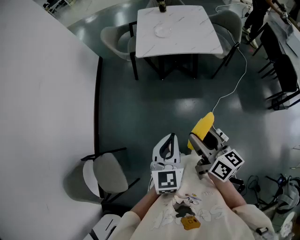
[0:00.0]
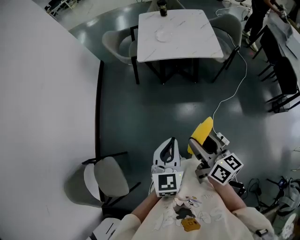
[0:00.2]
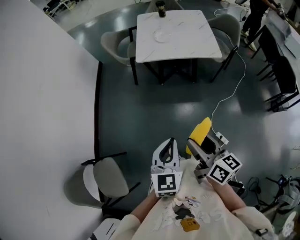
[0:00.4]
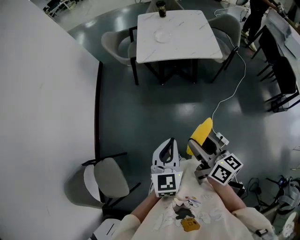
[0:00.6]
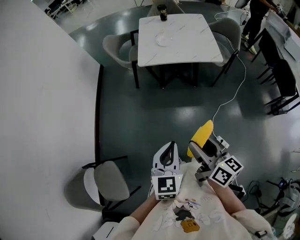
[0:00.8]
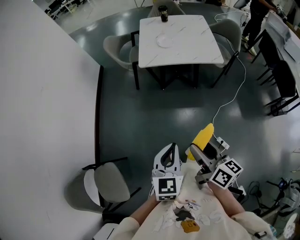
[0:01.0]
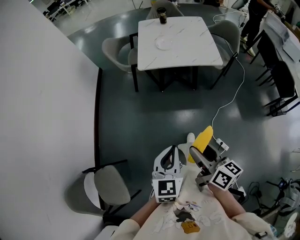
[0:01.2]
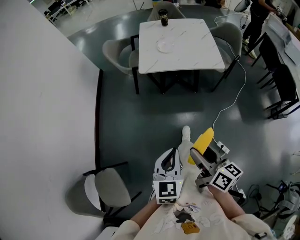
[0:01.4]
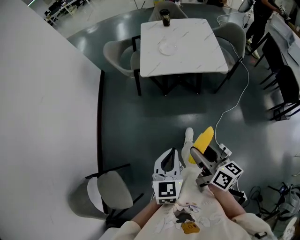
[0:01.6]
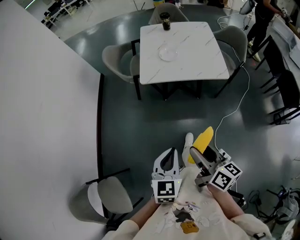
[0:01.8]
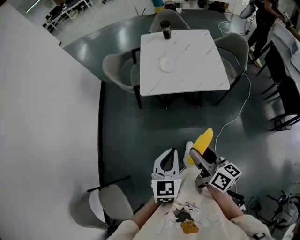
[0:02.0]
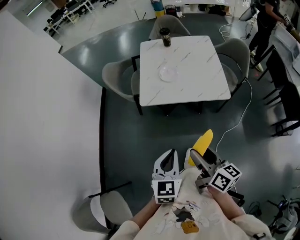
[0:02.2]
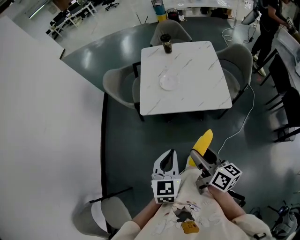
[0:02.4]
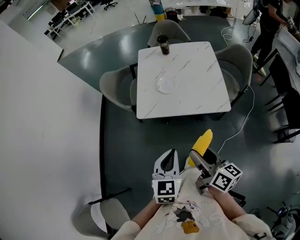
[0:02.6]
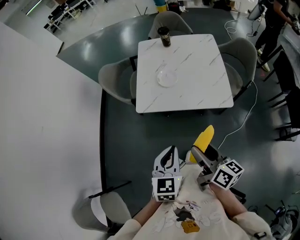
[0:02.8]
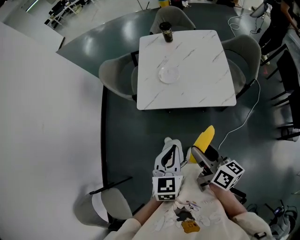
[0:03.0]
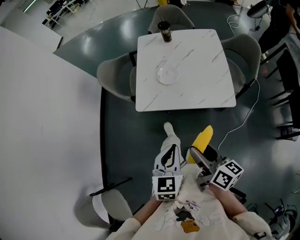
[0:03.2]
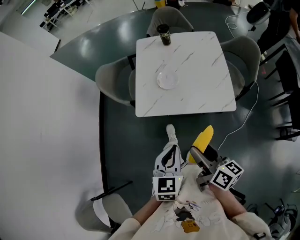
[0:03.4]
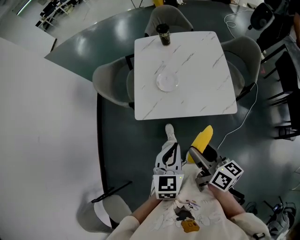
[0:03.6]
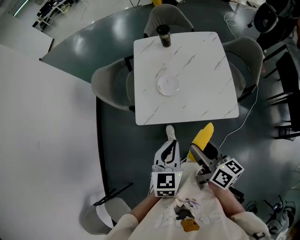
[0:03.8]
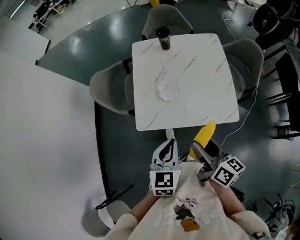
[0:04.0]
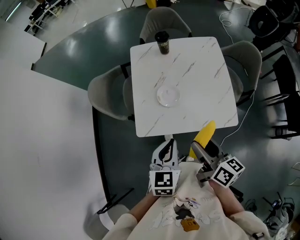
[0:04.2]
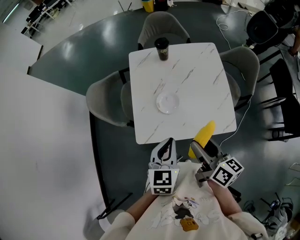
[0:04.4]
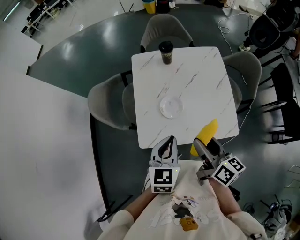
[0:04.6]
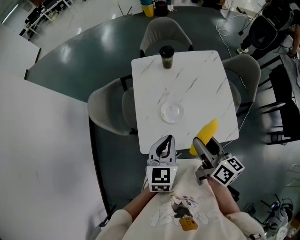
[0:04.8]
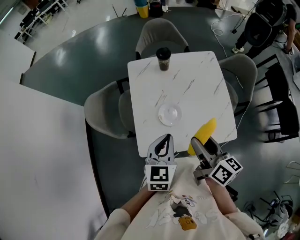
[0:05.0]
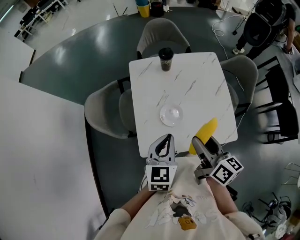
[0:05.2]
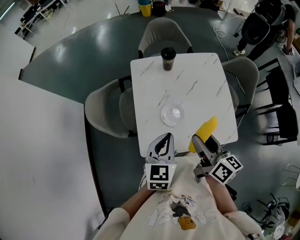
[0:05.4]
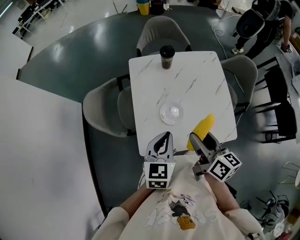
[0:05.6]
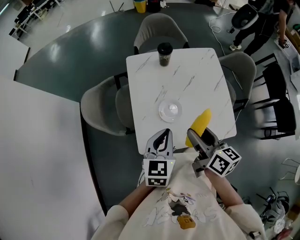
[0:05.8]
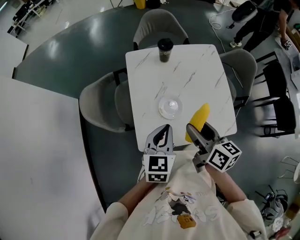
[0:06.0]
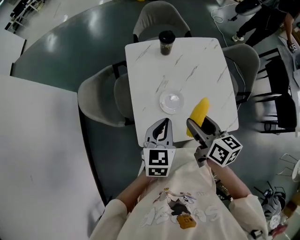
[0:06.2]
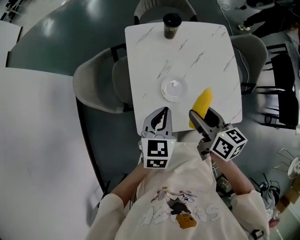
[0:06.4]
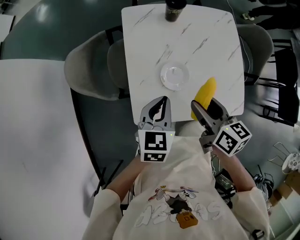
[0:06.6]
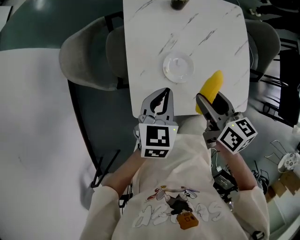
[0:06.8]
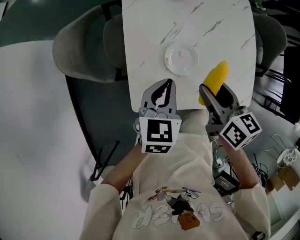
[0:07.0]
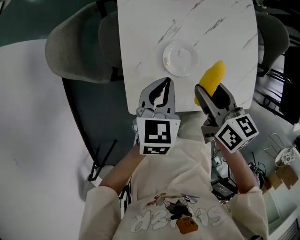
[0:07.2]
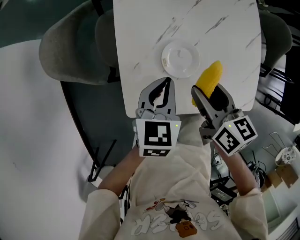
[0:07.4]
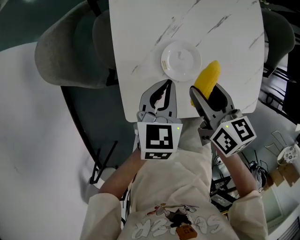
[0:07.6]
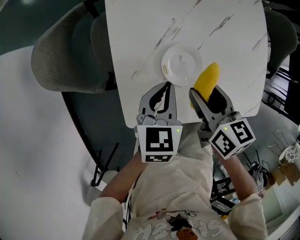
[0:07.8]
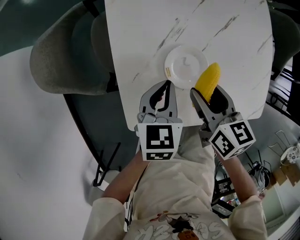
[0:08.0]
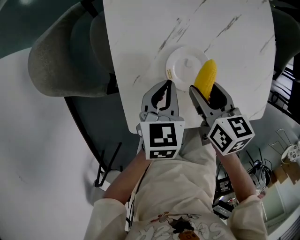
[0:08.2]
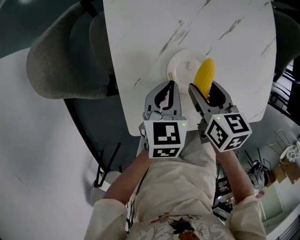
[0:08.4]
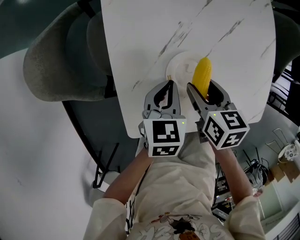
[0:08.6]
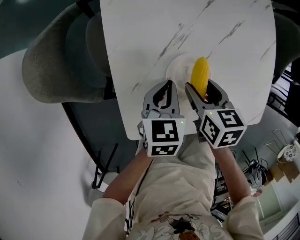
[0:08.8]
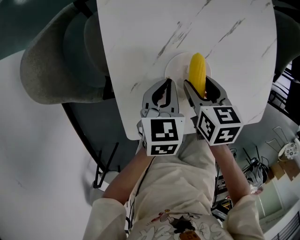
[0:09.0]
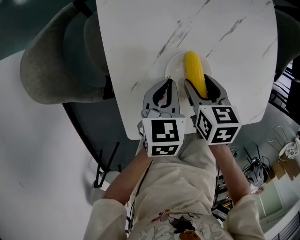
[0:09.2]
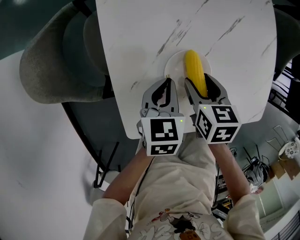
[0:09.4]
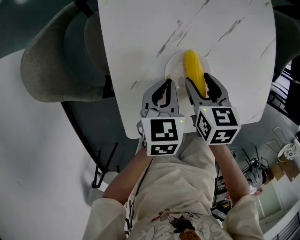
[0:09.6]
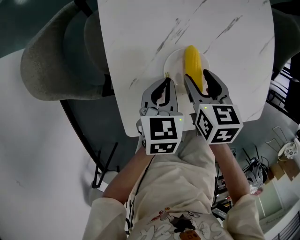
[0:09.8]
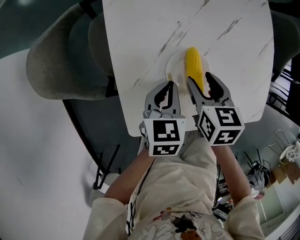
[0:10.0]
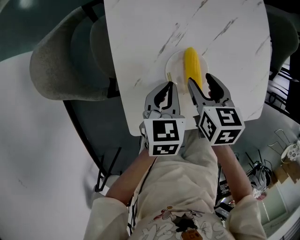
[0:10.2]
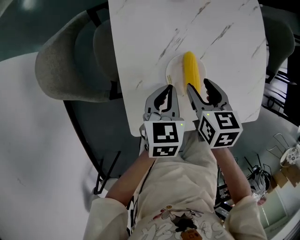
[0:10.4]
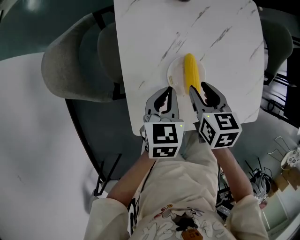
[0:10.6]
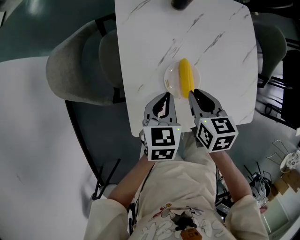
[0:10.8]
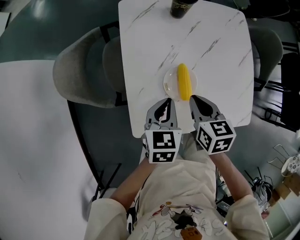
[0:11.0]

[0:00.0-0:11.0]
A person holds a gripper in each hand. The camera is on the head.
0:00.0 to 0:01.6: The grippers both shift forward by approximately 5 cm.
0:01.6 to 0:03.2: The grippers both shift forward and to the right by roughly 30 cm.
0:03.2 to 0:04.8: Both grippers travel together forward, roughly 30 cm.
0:04.8 to 0:06.2: Both grippers move forward, approximately 5 cm.
0:06.2 to 0:07.8: The two grippers go about 20 cm downward.
0:07.8 to 0:09.4: The grippers both shift downward by roughly 10 cm. The right gripper turns by some 20 degrees.
0:09.4 to 0:11.0: The grippers both shift upward by about 10 cm. The right gripper closes.

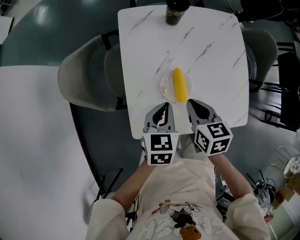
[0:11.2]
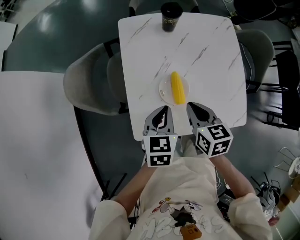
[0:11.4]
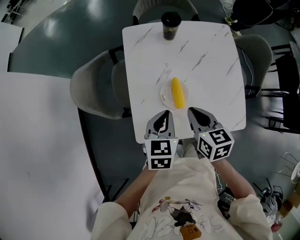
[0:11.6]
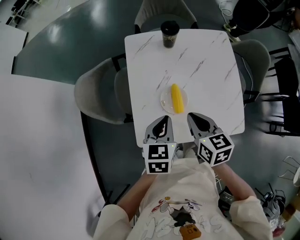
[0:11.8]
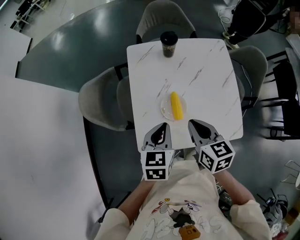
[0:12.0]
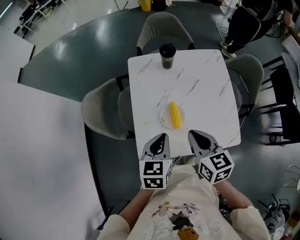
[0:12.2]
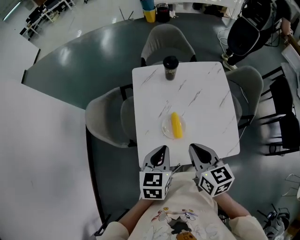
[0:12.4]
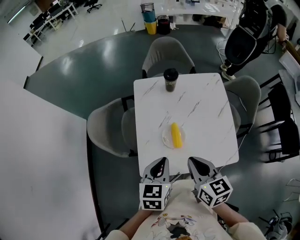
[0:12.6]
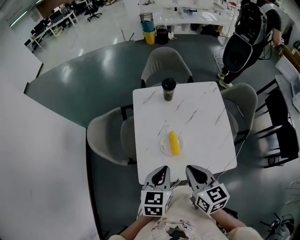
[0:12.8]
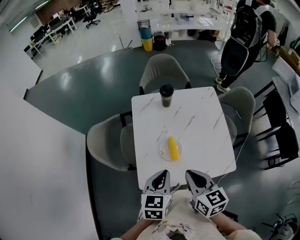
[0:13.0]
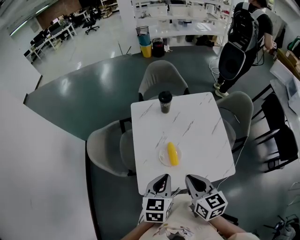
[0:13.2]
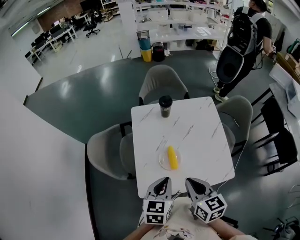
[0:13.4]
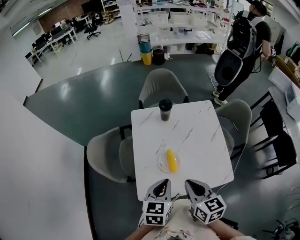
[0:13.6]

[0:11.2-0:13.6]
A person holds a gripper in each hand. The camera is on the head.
0:11.2 to 0:12.4: Both grippers move upward, about 15 cm.
0:12.4 to 0:13.6: The grippers make only small movements.

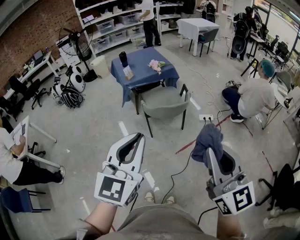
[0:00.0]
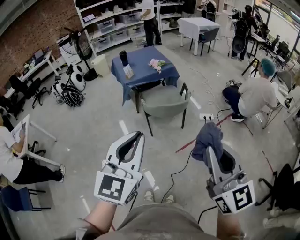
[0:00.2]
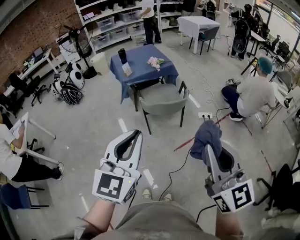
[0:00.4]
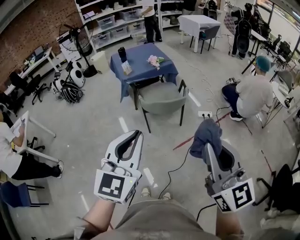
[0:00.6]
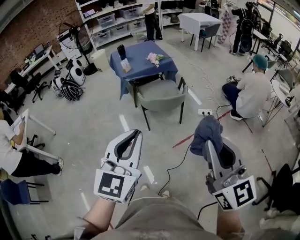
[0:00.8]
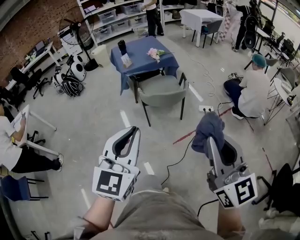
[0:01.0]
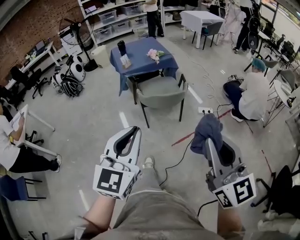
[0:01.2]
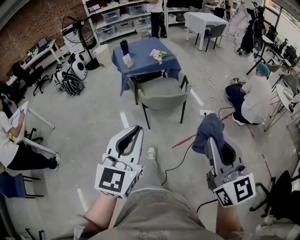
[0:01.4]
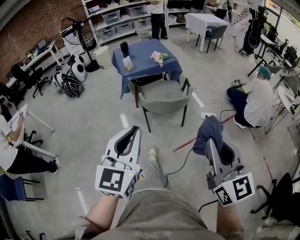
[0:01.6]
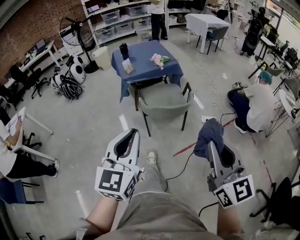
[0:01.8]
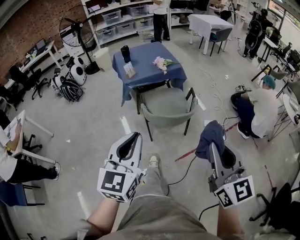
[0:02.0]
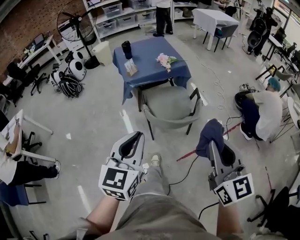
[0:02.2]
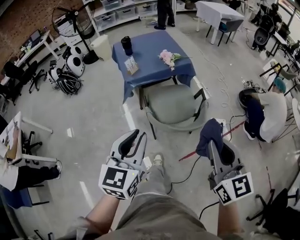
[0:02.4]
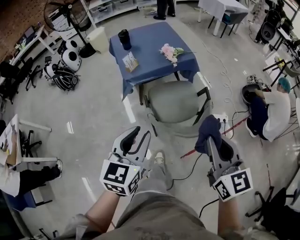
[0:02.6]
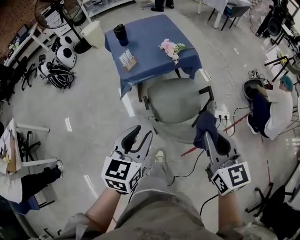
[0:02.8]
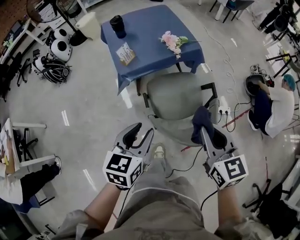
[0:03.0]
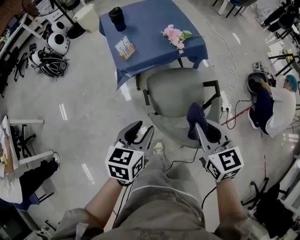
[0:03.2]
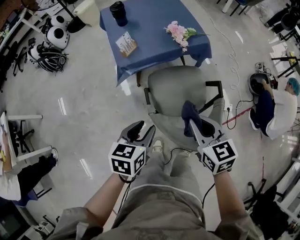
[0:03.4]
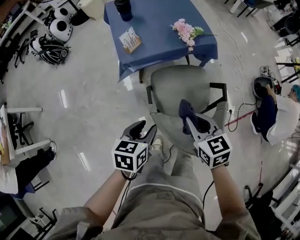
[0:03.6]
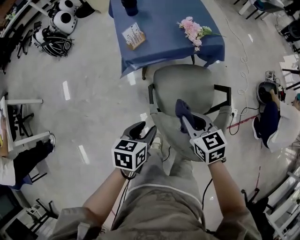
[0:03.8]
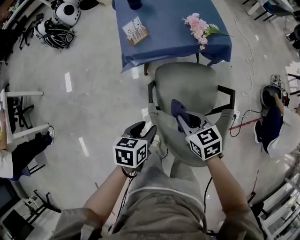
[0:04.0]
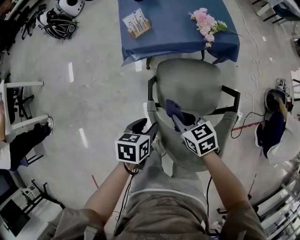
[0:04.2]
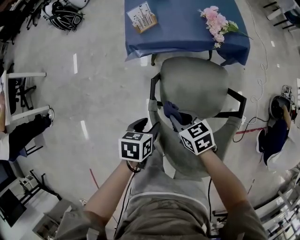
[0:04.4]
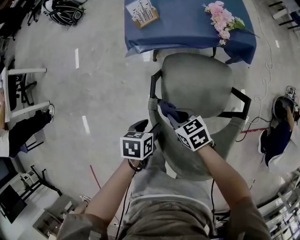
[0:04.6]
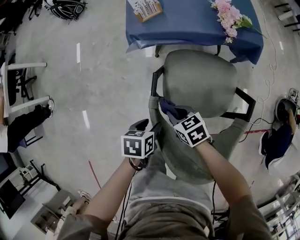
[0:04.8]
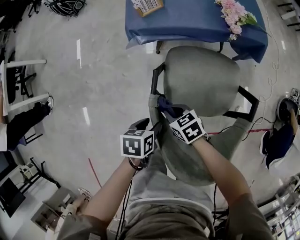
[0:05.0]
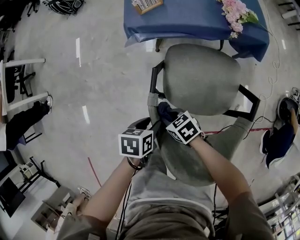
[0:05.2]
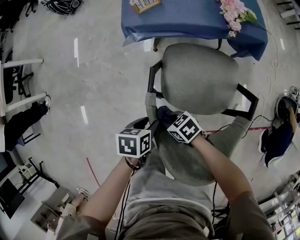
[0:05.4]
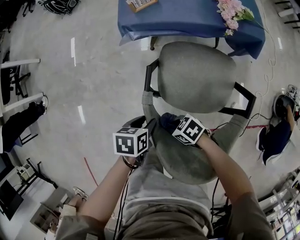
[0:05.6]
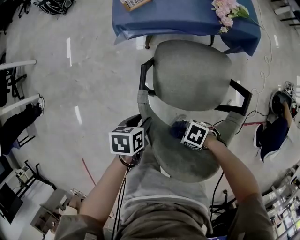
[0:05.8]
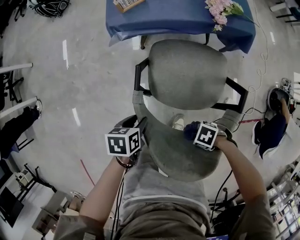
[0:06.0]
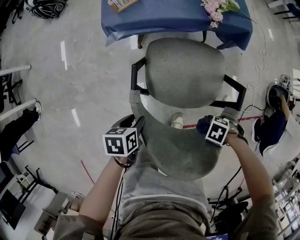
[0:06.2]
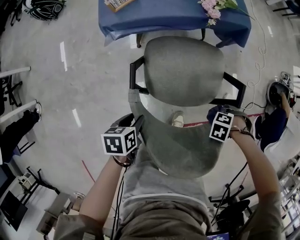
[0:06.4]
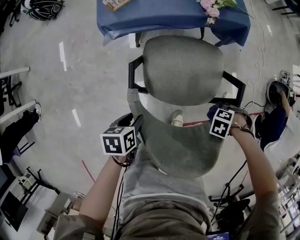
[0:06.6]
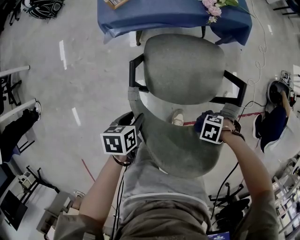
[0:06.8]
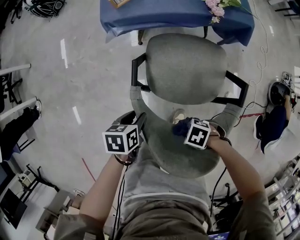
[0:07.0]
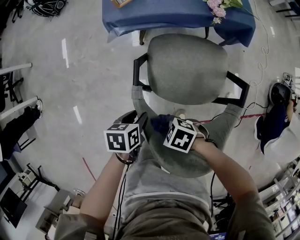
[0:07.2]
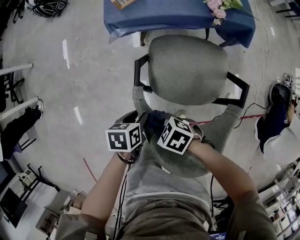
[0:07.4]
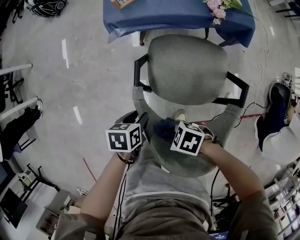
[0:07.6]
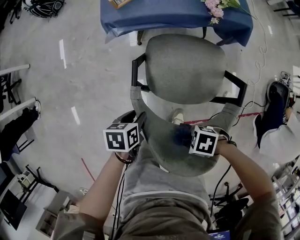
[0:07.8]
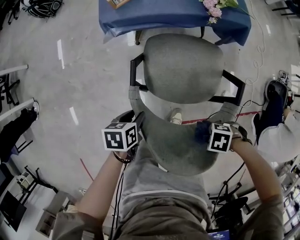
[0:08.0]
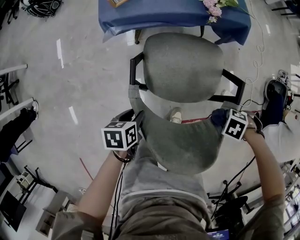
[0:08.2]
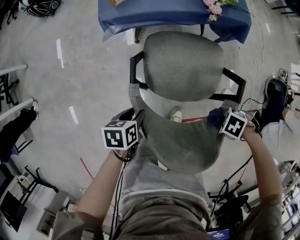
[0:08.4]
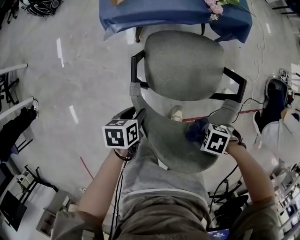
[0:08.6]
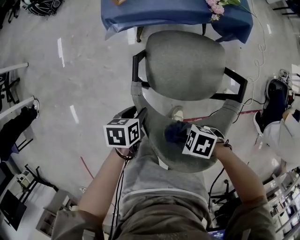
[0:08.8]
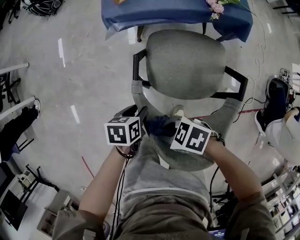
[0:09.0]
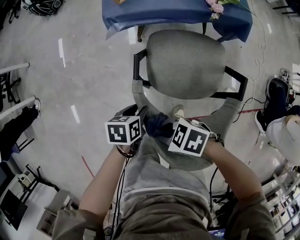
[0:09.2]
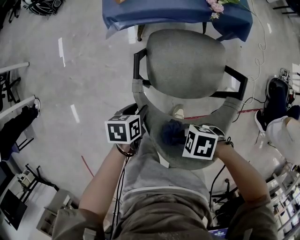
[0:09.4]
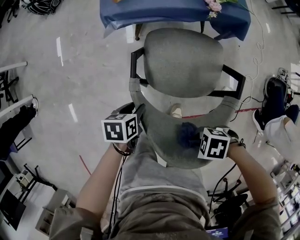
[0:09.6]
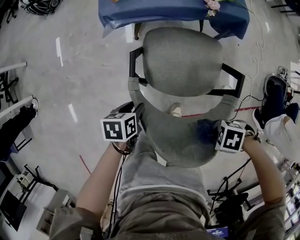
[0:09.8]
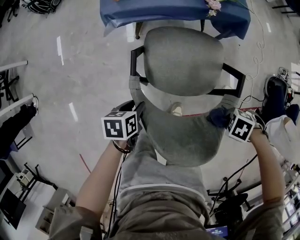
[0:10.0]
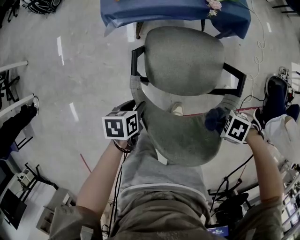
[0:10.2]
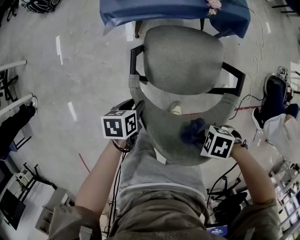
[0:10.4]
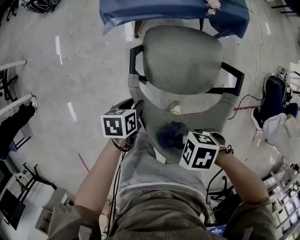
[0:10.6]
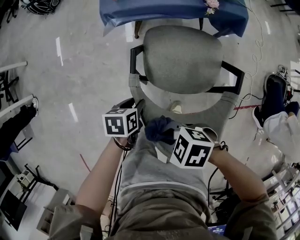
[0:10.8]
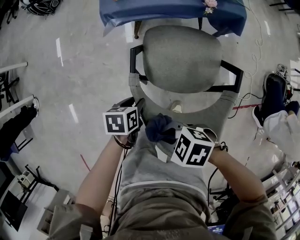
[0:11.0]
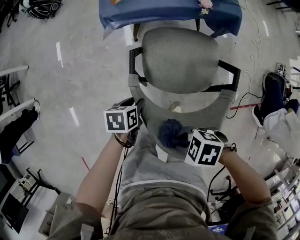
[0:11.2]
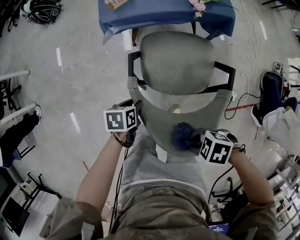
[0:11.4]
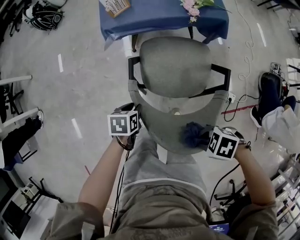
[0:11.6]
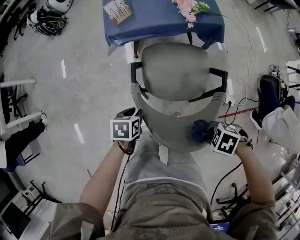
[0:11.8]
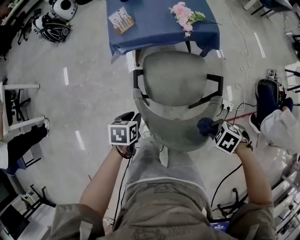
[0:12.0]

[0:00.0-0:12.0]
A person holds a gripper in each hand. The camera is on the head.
0:00.0 to 0:01.6: The left gripper heads downward, covering about 5 cm, while the right gripper travels downward, forward and to the right by about 10 cm.
0:01.6 to 0:03.0: The two grippers travel together, forward, about 50 cm. The left gripper shifts approximately 20 cm downward, turns by roughly 40 degrees, and opens; the right gripper rotates about 30 degrees.
0:03.0 to 0:04.4: The two grippers go approximately 30 cm downward. The left gripper turns by approximately 40 degrees; the right gripper turns by about 50 degrees.
0:04.4 to 0:06.0: The right gripper shifts by about 25 cm, and rotates approximately 70 degrees, while the left gripper goes about 10 cm downward.
0:06.0 to 0:07.6: The right gripper ends up some 15 cm from where it was, and swivels approximately 20 degrees.
0:07.6 to 0:09.0: The right gripper heads upward, covering approximately 5 cm.
0:09.0 to 0:10.4: The right gripper rotates roughly 20 degrees.
0:10.4 to 0:12.0: The right gripper changes its angle by about 30 degrees. The left gripper travels upward by about 10 cm.
